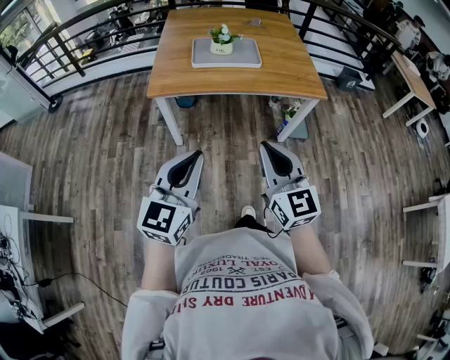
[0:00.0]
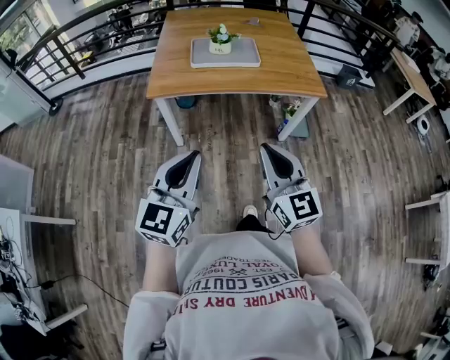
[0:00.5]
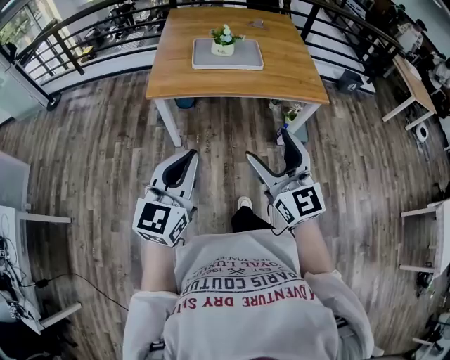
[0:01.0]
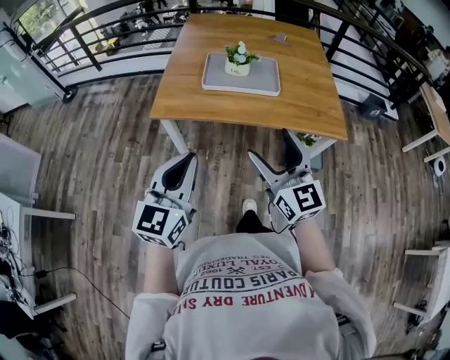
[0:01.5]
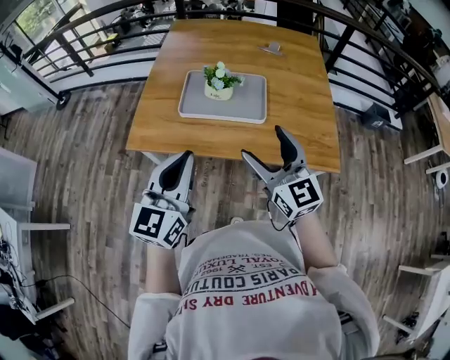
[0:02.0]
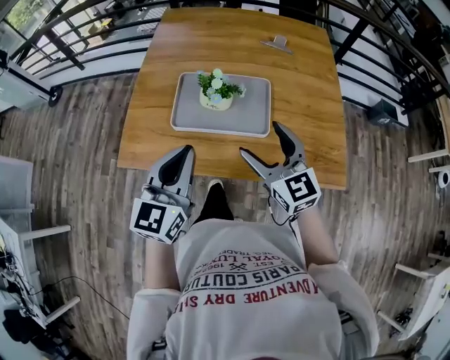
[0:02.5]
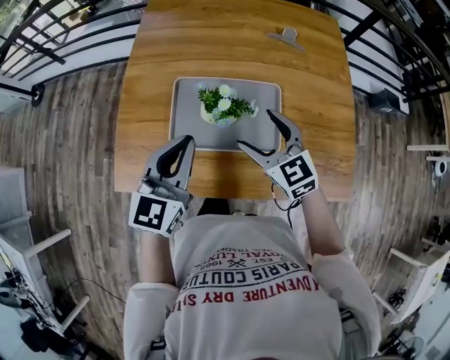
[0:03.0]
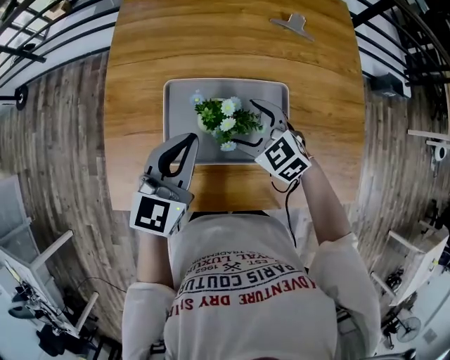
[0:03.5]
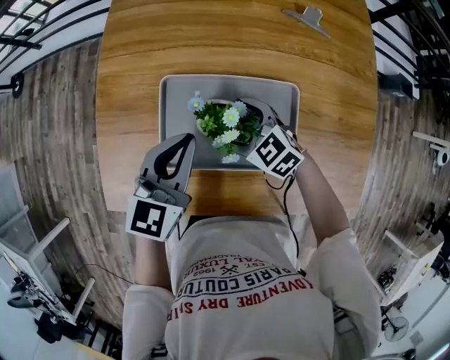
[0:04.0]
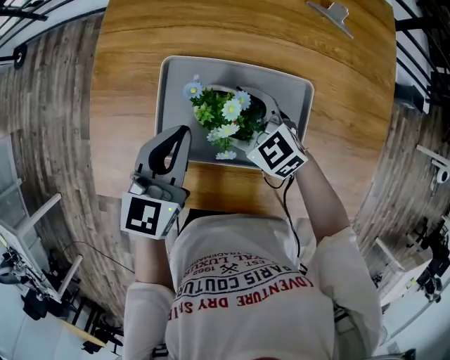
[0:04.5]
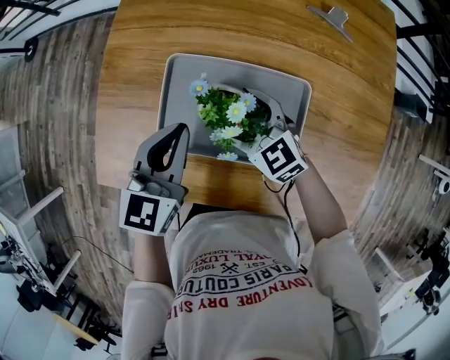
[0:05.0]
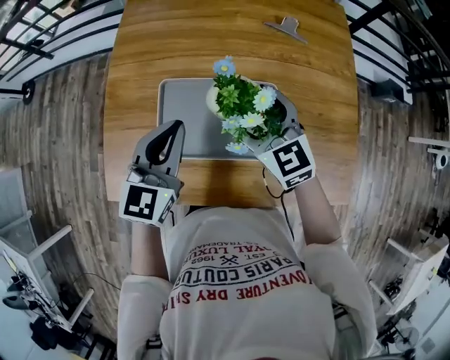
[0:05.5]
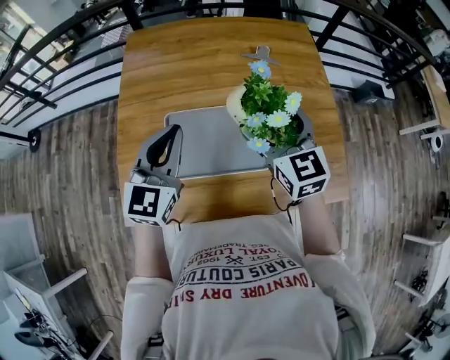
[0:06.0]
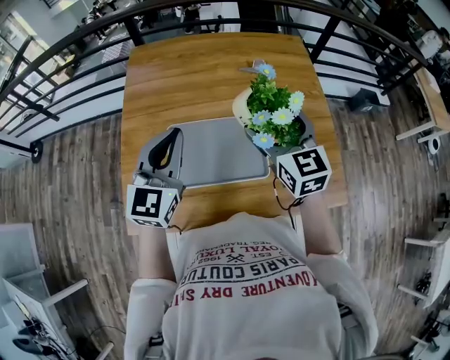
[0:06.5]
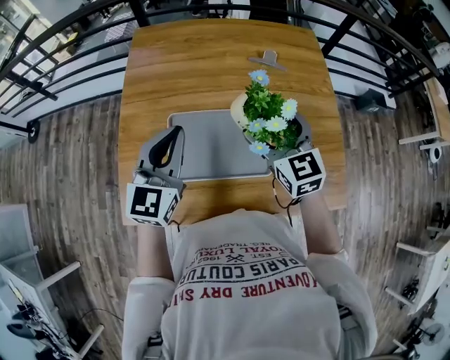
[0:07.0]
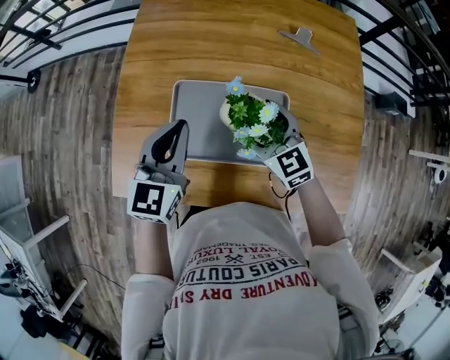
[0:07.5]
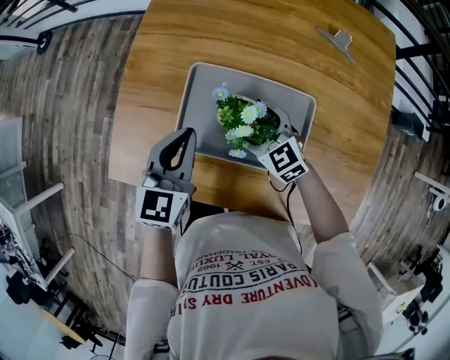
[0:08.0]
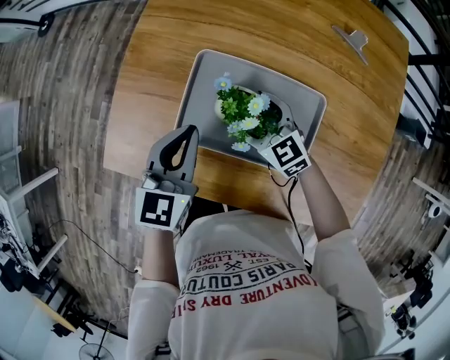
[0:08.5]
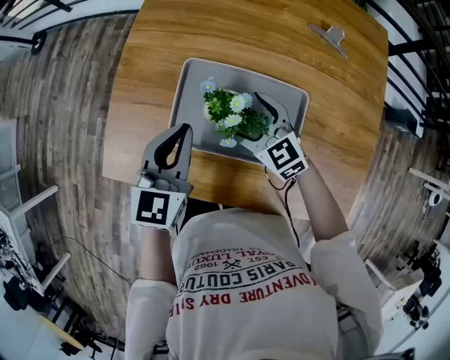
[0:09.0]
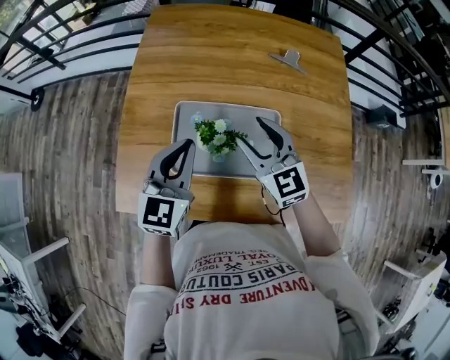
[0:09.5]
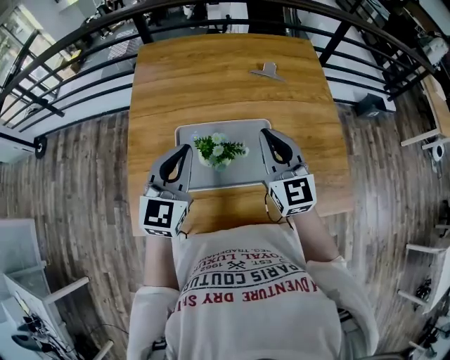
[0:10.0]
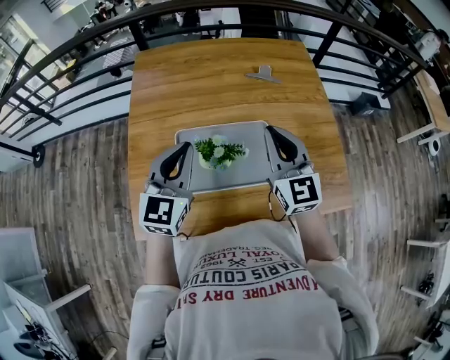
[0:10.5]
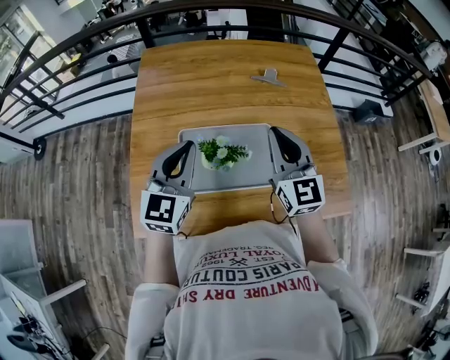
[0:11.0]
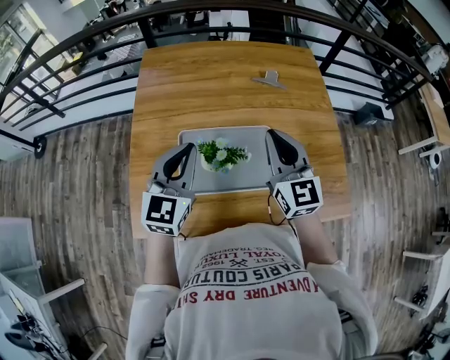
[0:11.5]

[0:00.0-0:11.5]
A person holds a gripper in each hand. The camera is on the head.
0:00.0 to 0:02.0: The two grippers go about 35 cm forward. The right gripper opens up.
0:02.0 to 0:04.0: Both grippers travel together forward and downward, approximately 40 cm. The left gripper swivels roughly 20 degrees. Meanwhile the right gripper tilts its fingers about 40 degrees downward.
0:04.0 to 0:06.0: The right gripper travels upward by approximately 25 cm, and changes its angle by approximately 50 degrees, while the left gripper travels upward by roughly 15 cm, and rotates approximately 20 degrees.
0:06.0 to 0:07.5: The right gripper travels downward and to the left by some 15 cm, and rotates some 30 degrees, while the left gripper shifts some 5 cm downward.
0:07.5 to 0:09.5: The right gripper shifts about 5 cm upward, and closes up. Meanwhile the left gripper goes downward and returns, approximately 5 cm each way.
0:09.5 to 0:11.5: The right gripper is displaced upward and to the right by approximately 10 cm, changes its angle by approximately 30 degrees, and closes its fingers. The left gripper travels upward by some 5 cm.

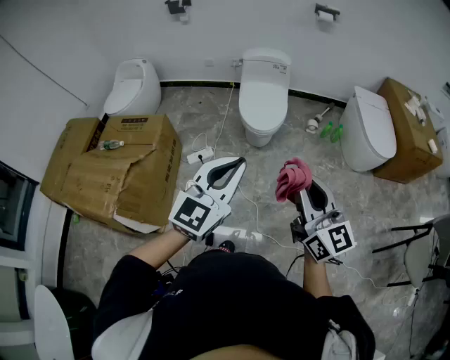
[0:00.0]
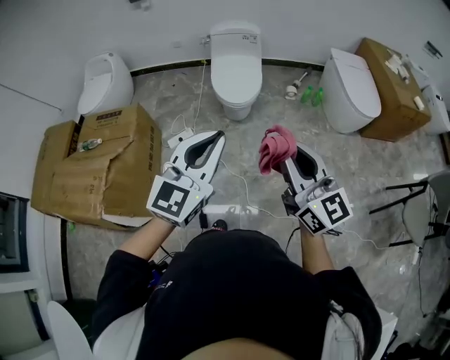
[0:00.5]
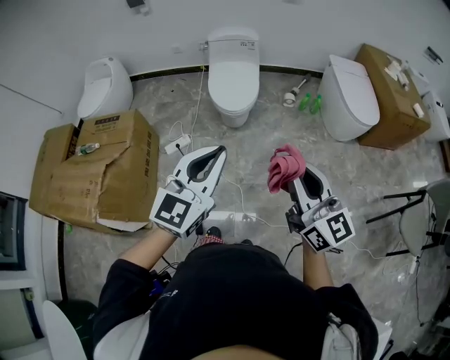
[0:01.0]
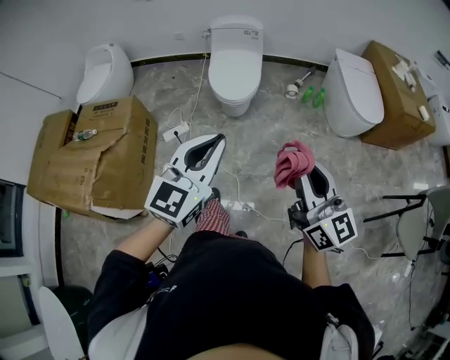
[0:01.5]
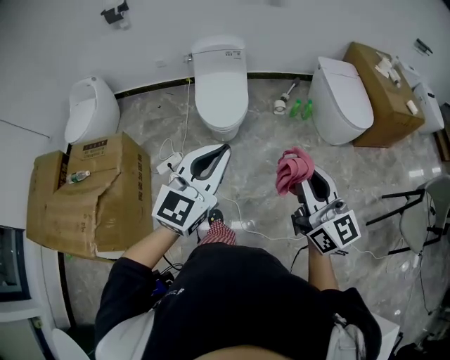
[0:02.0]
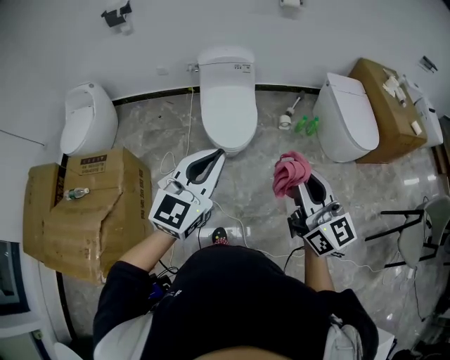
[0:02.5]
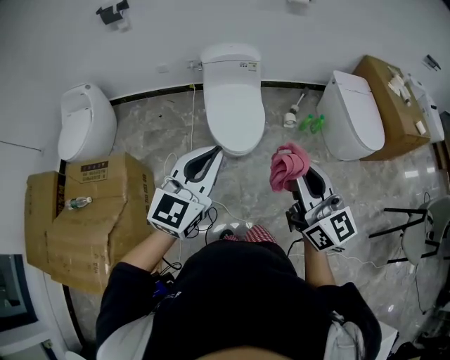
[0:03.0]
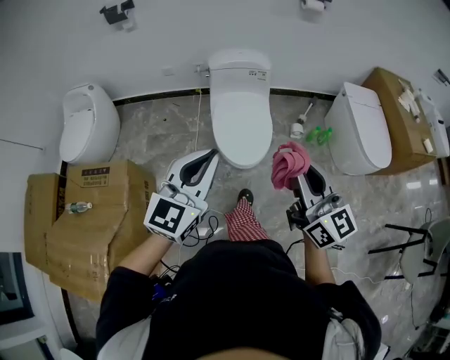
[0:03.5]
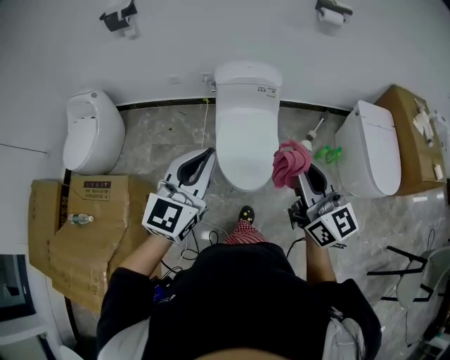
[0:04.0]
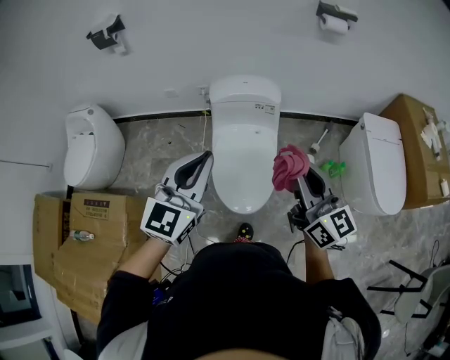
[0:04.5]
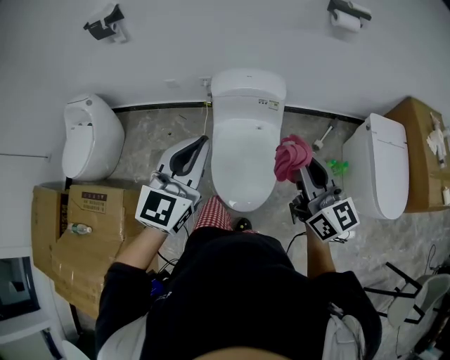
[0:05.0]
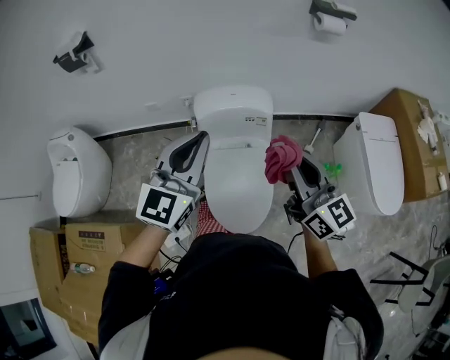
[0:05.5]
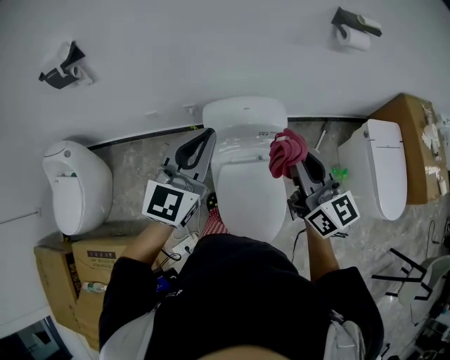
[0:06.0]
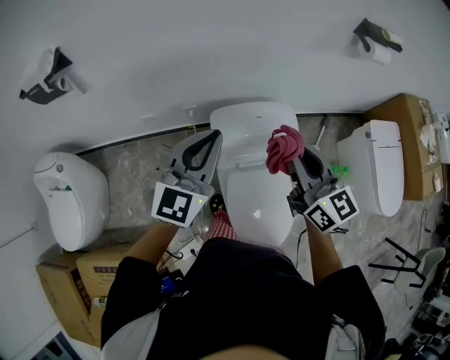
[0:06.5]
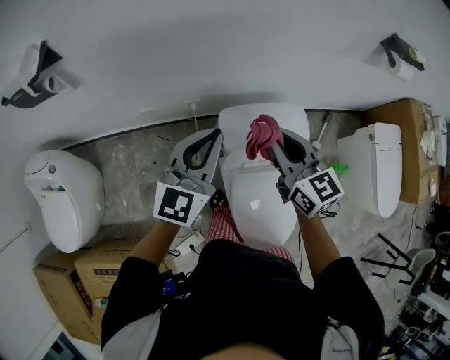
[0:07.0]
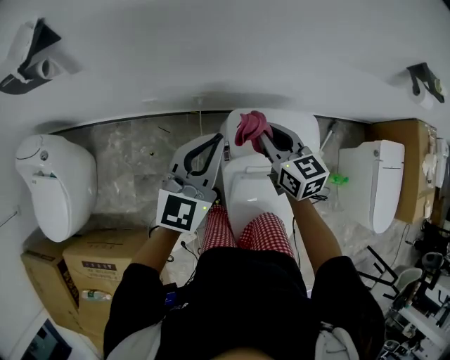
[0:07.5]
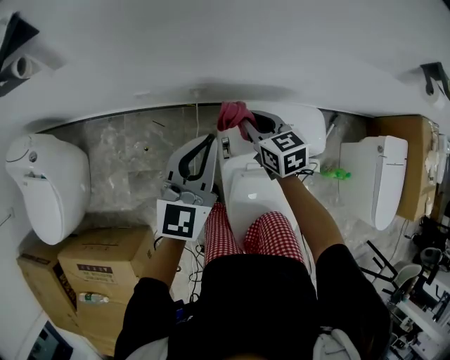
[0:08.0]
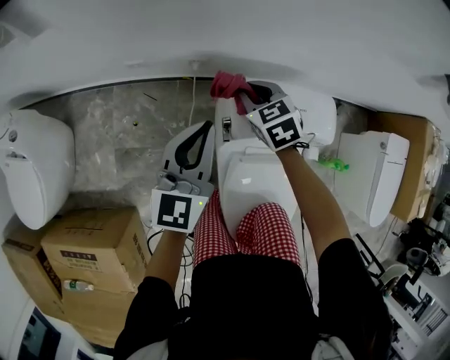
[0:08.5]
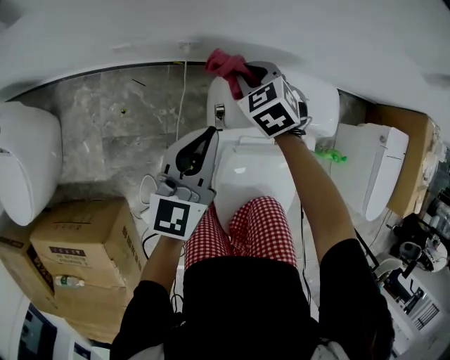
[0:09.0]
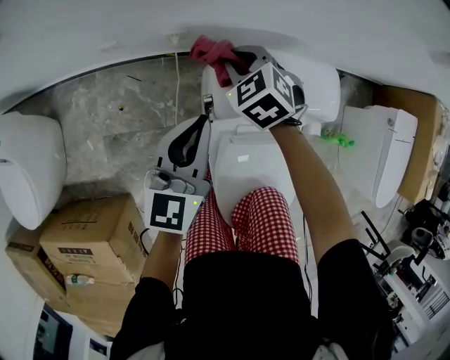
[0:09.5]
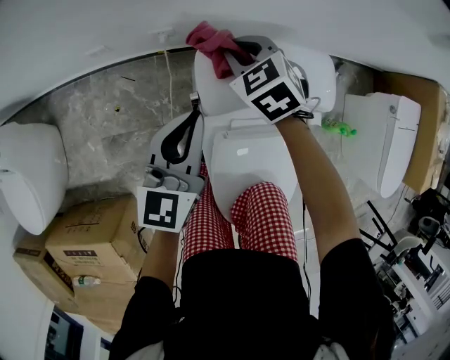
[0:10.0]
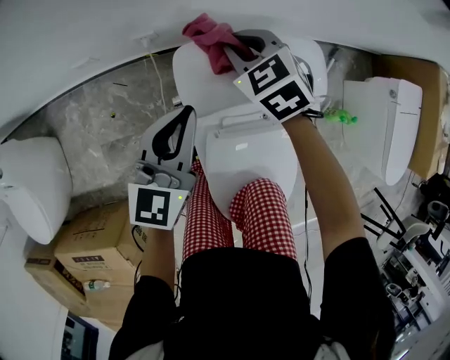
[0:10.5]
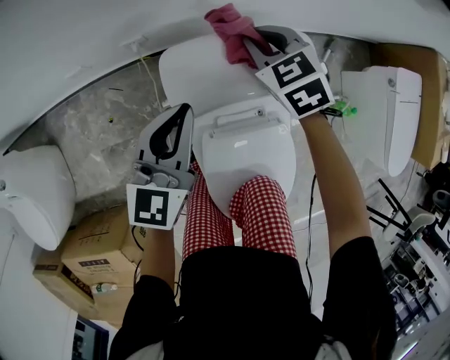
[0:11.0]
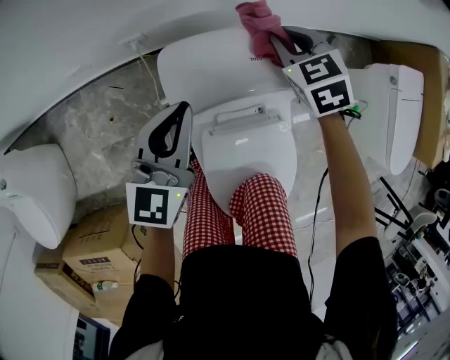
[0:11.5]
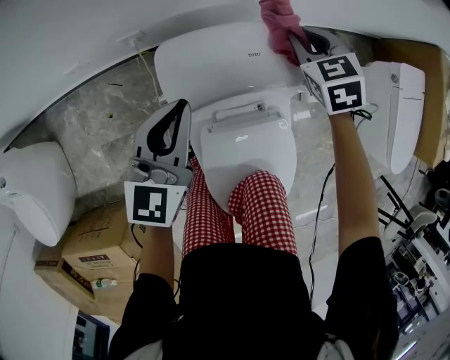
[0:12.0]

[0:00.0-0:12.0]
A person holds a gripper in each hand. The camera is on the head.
0:00.0 to 0:02.0: The two grippers go about 15 cm forward and to the right.
0:02.0 to 0:04.0: Both grippers are carried forward and to the left, roughly 40 cm.
0:04.0 to 0:06.0: Both grippers travel together forward, approximately 40 cm.
0:06.0 to 0:08.0: The left gripper goes about 30 cm forward, downward and to the left, while the right gripper shifts about 50 cm forward, downward and to the left, and tips its fingers downward by roughly 40 degrees.
0:08.0 to 0:10.0: The right gripper heads downward, covering about 10 cm, and turns by some 30 degrees, while the left gripper travels downward and to the right by roughly 15 cm.
0:10.0 to 0:12.0: The left gripper heads to the right, covering about 5 cm. Meanwhile the right gripper is displaced to the right by roughly 20 cm, and rotates approximately 20 degrees.

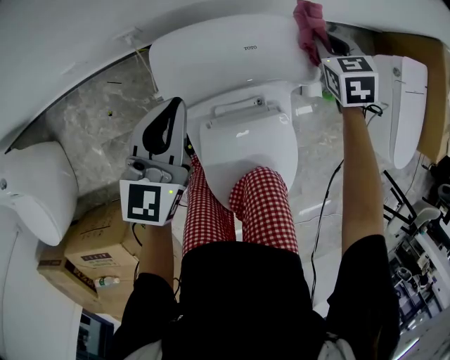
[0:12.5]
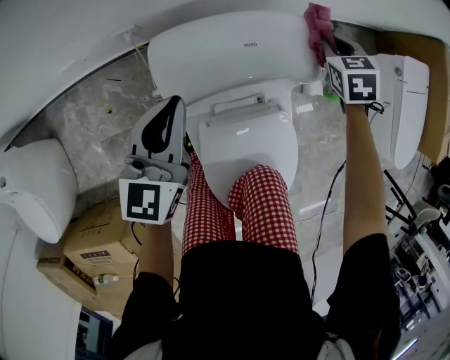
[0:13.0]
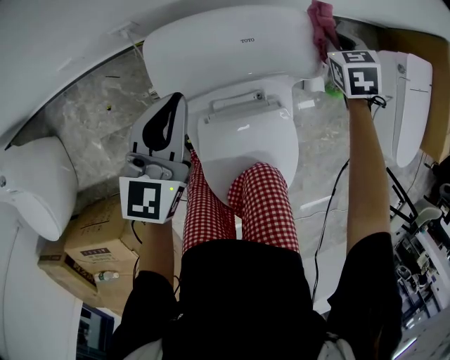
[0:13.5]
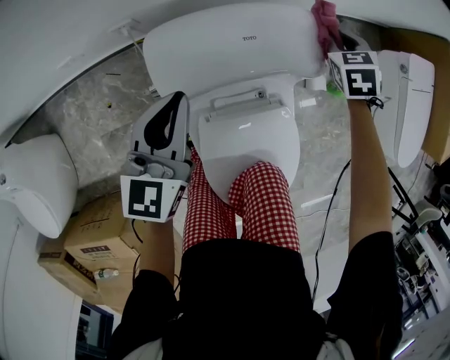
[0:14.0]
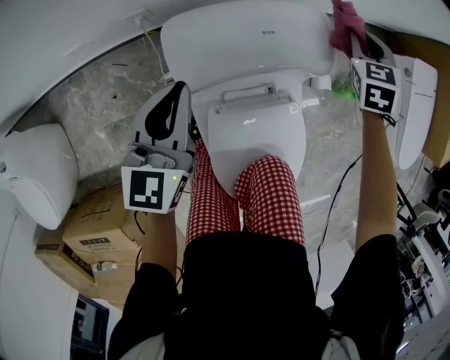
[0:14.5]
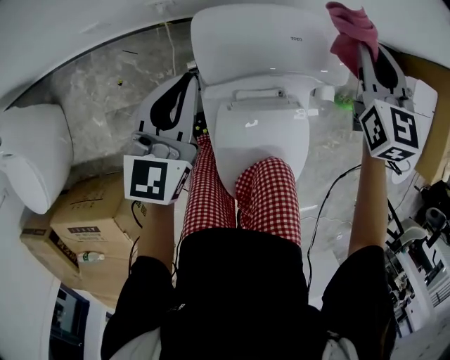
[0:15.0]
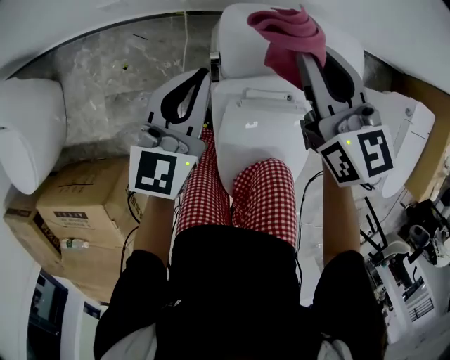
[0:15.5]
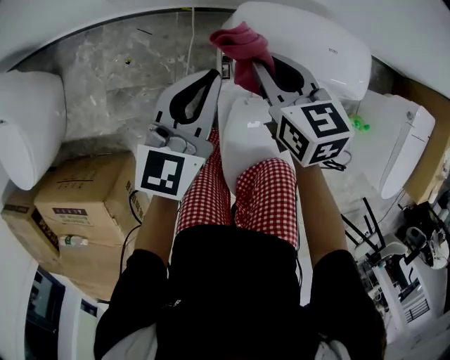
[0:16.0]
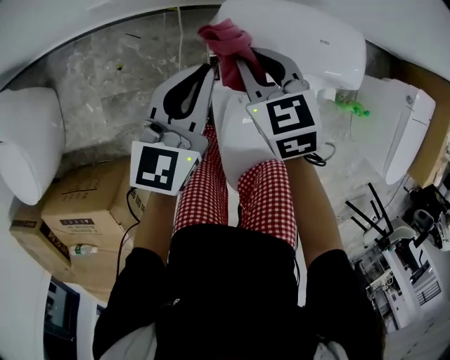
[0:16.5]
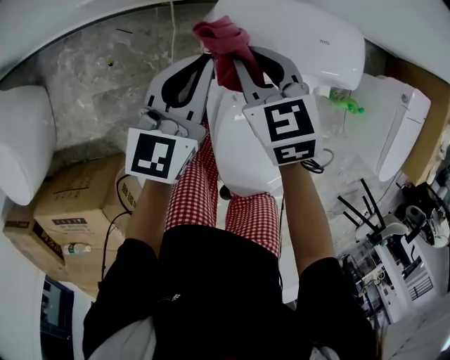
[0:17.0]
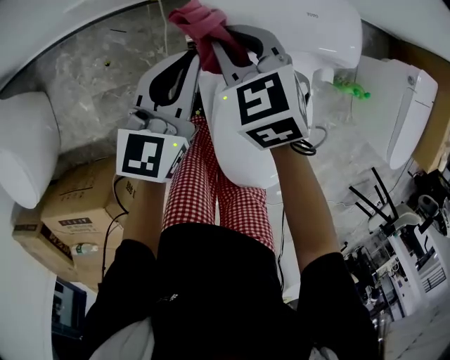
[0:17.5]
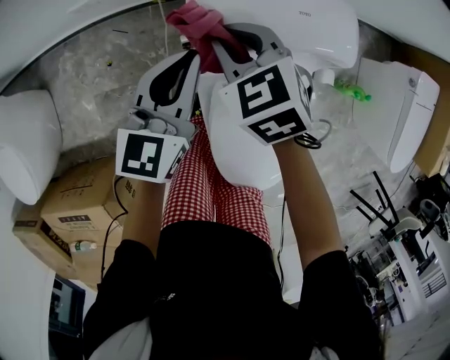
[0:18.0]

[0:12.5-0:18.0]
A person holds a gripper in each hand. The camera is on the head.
0:12.5 to 0:14.5: The grippers stay close to where they were, moving slightly.
0:14.5 to 0:16.0: The right gripper reaches about 10 cm upward, then returns, and changes its angle by approximately 50 degrees; the left gripper changes place by roughly 10 cm.
0:16.0 to 0:18.0: The right gripper rotates roughly 30 degrees. Meanwhile the left gripper changes place by some 5 cm.
